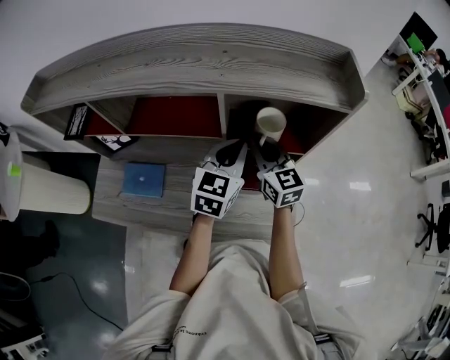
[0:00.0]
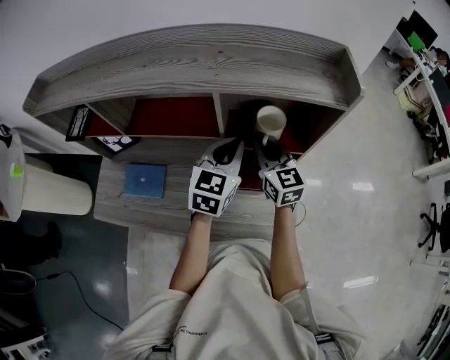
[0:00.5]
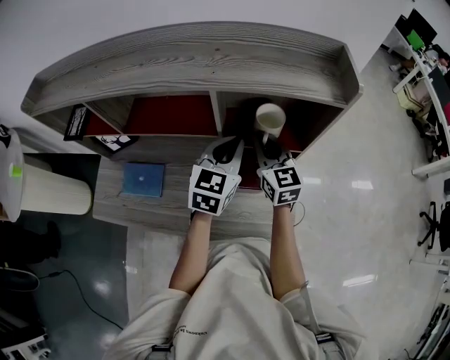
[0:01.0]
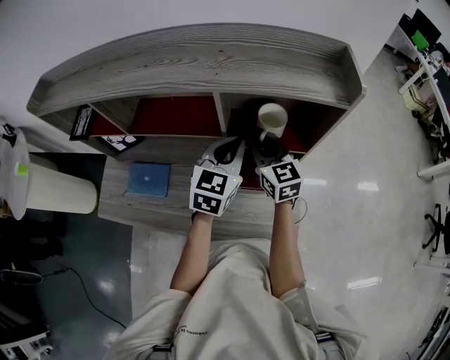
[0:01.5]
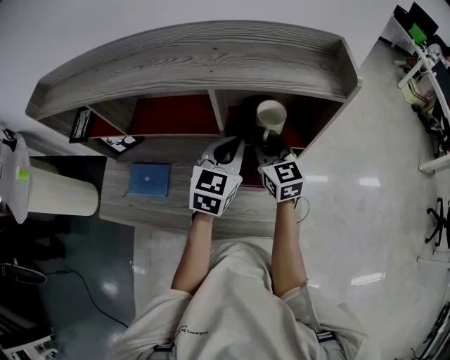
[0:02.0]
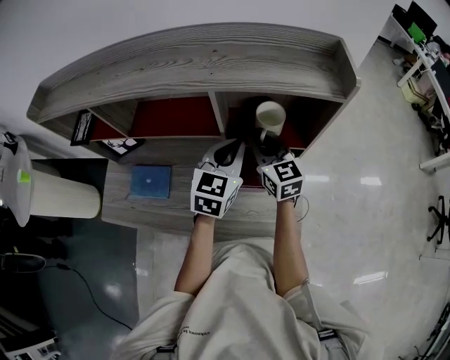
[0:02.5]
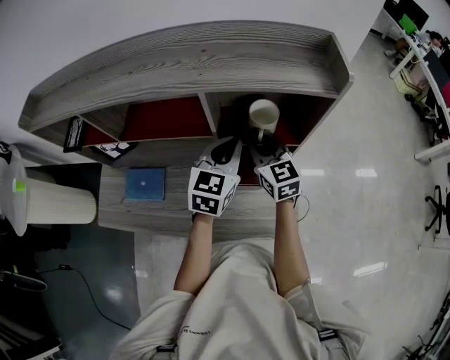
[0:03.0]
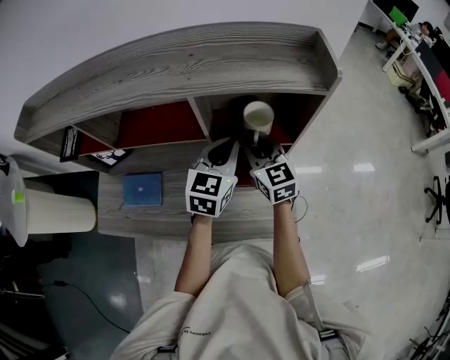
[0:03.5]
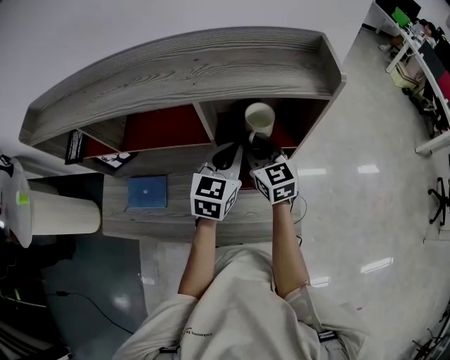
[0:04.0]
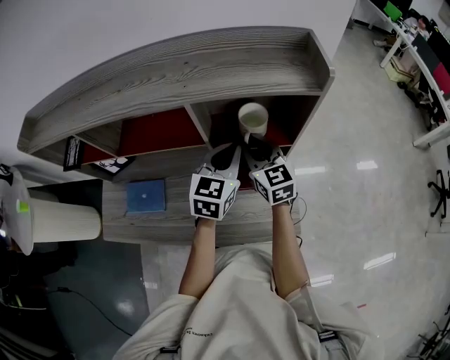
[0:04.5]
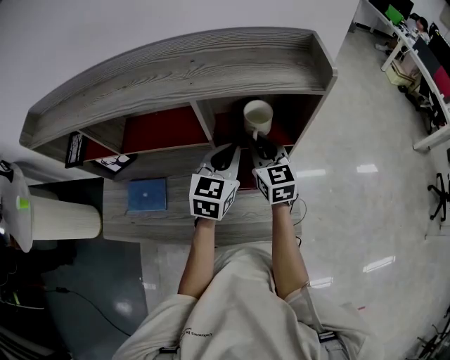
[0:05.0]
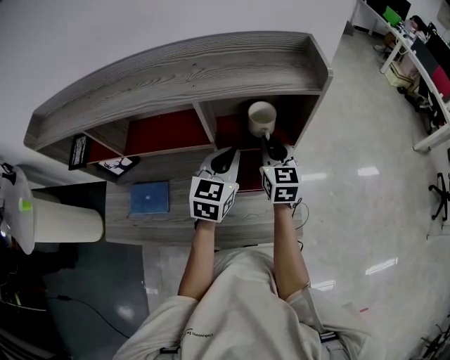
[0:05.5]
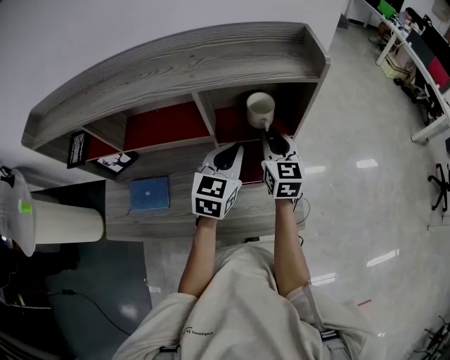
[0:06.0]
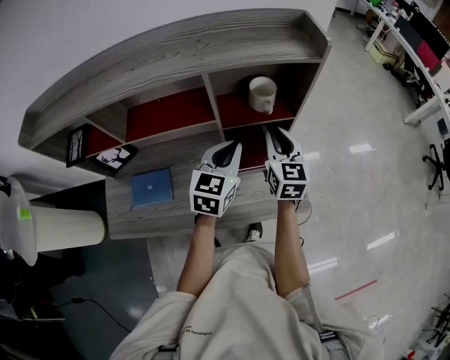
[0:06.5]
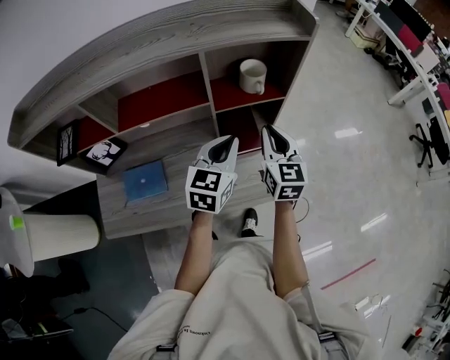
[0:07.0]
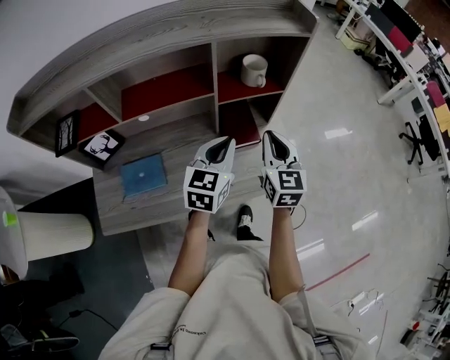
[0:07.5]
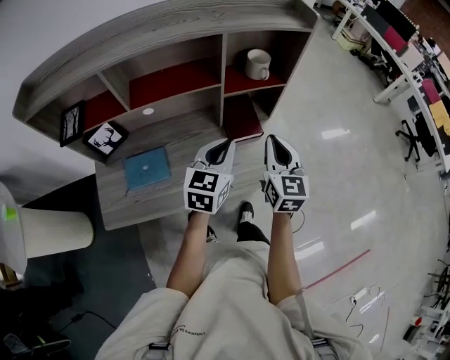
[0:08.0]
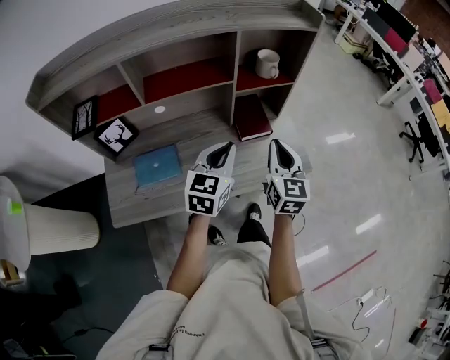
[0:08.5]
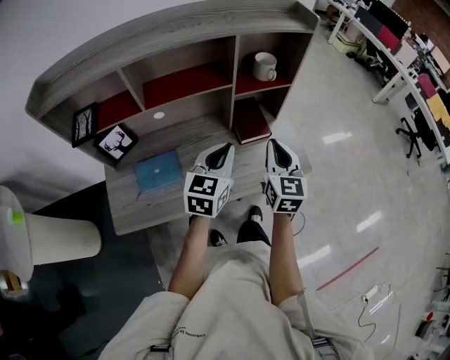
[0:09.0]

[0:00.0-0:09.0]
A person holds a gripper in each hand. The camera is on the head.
0:00.0 to 0:04.5: The grippers make only small movements.
0:04.5 to 0:07.0: The two grippers go approximately 10 cm backward. The right gripper rotates some 30 degrees.
0:07.0 to 0:09.0: The right gripper moves backward, some 15 cm. The left gripper goes approximately 15 cm backward and to the left.

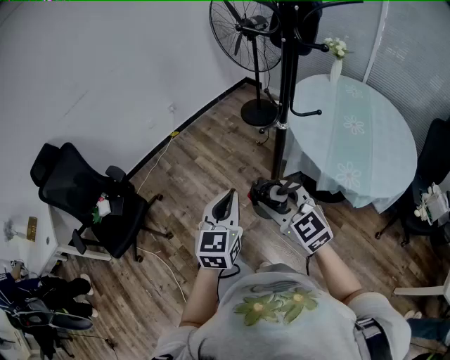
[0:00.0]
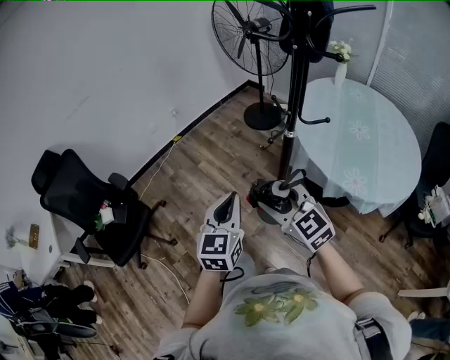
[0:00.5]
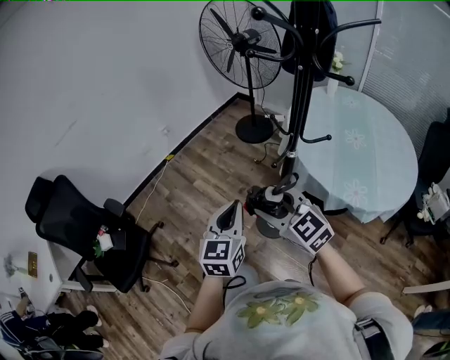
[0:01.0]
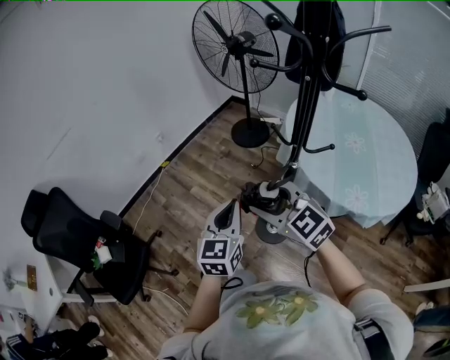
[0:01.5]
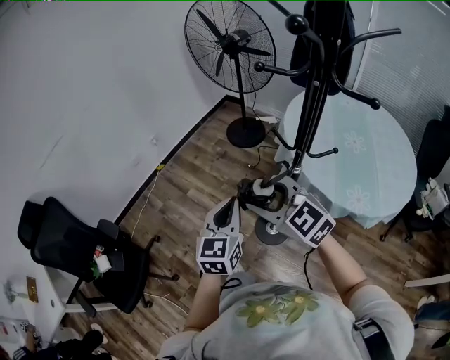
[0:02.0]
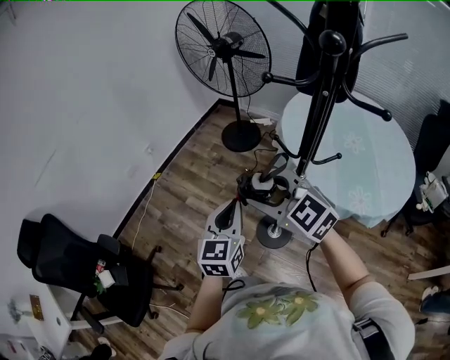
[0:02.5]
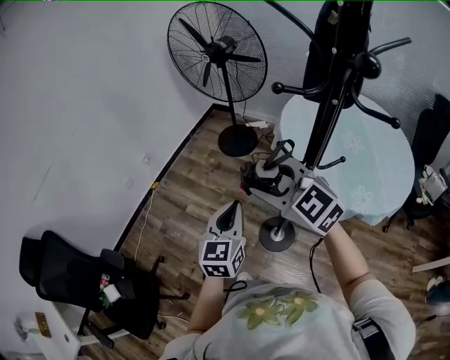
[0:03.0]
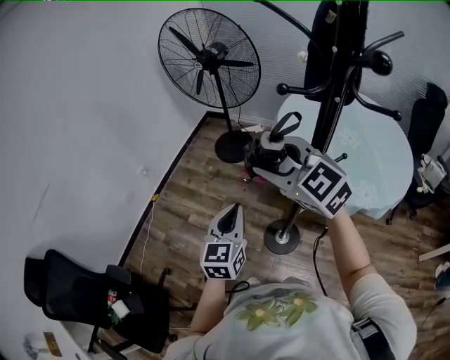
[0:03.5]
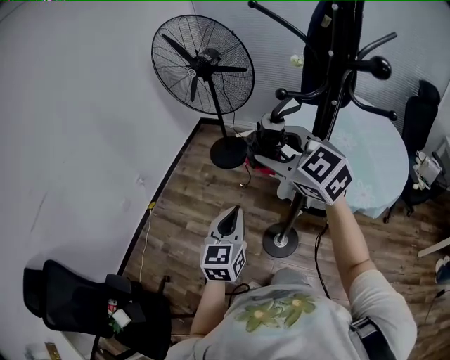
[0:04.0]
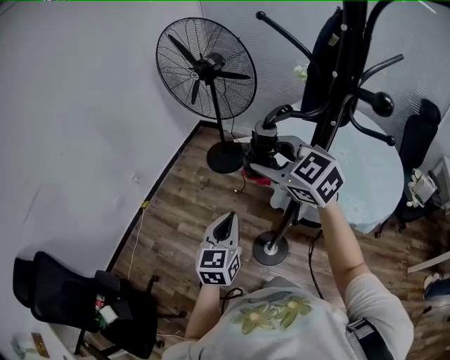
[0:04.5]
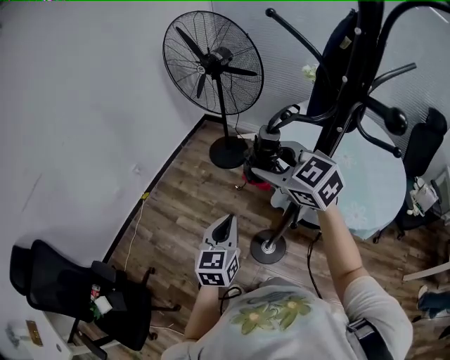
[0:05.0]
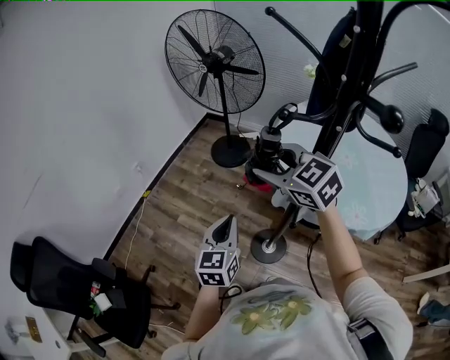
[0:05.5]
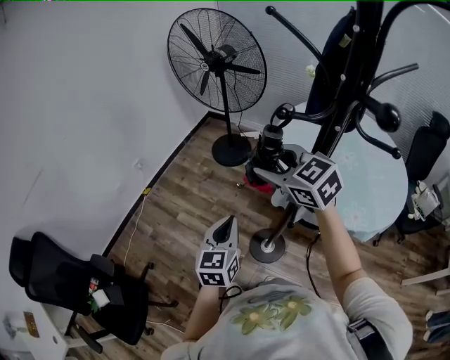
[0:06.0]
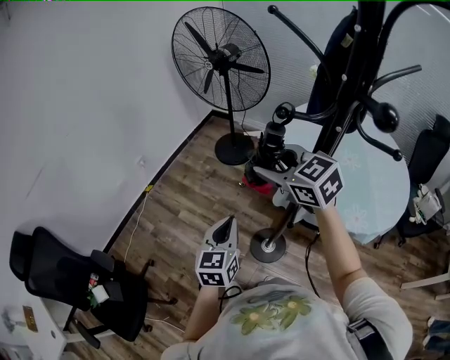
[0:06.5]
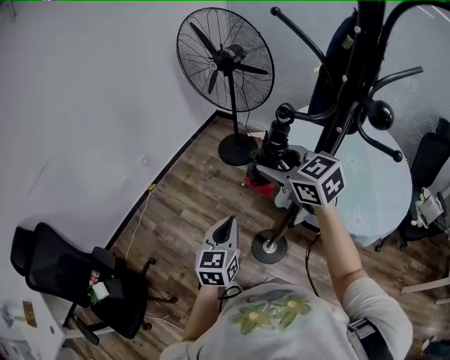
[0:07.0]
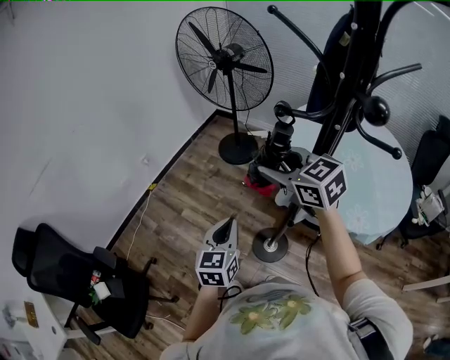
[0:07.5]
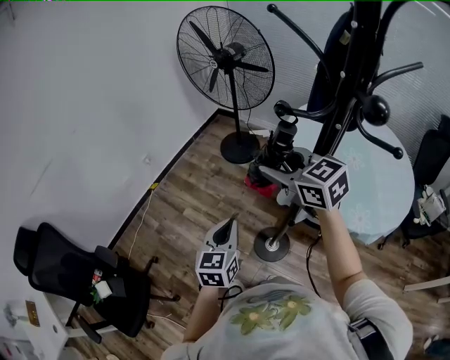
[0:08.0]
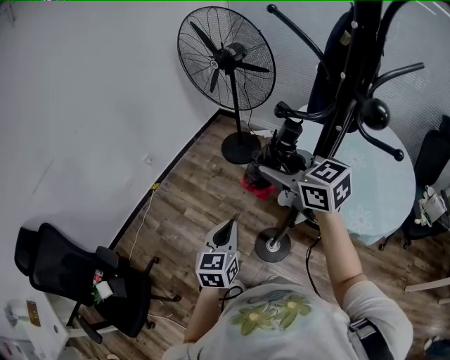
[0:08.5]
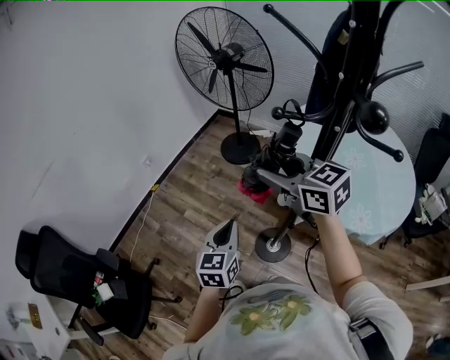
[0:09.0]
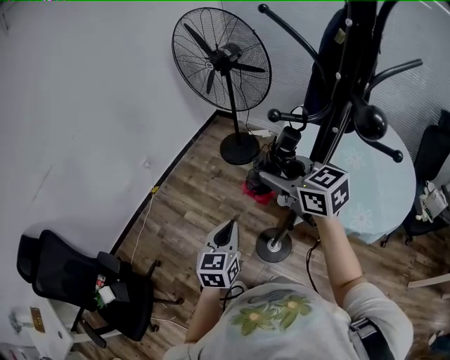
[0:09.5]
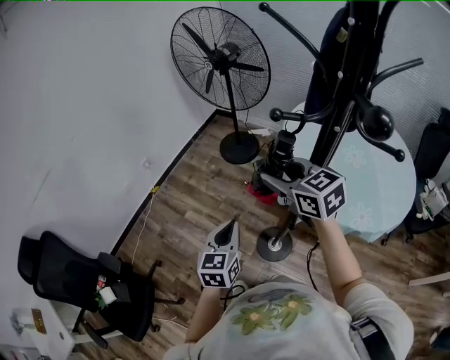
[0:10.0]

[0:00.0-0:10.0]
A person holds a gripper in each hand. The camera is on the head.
0:00.0 to 0:02.0: The two grippers go some 20 cm forward.
0:02.0 to 0:04.0: The left gripper shifts some 10 cm forward; the right gripper shifts some 20 cm forward and upward, and turns by some 20 degrees.
0:04.0 to 0:06.0: The right gripper heads downward, covering about 5 cm.
0:06.0 to 0:10.0: The grippers stay close to where they were, moving slightly.

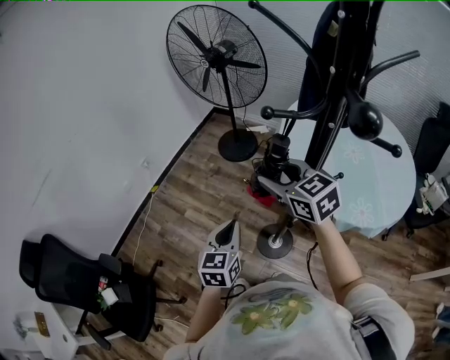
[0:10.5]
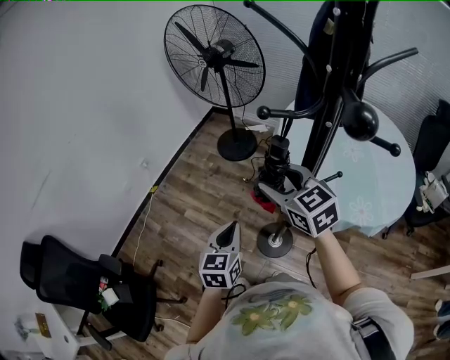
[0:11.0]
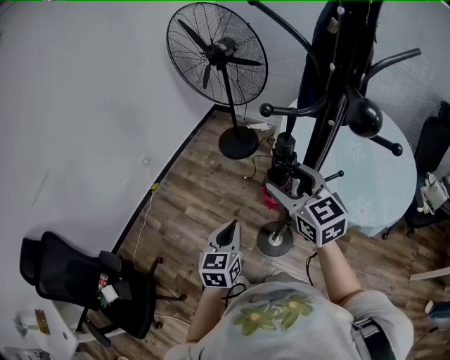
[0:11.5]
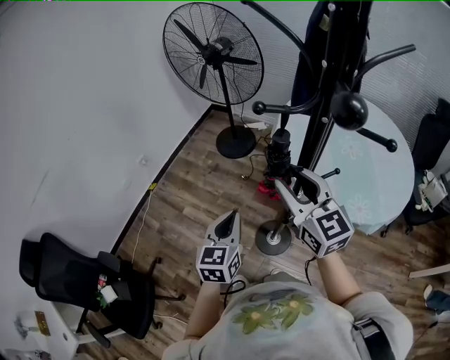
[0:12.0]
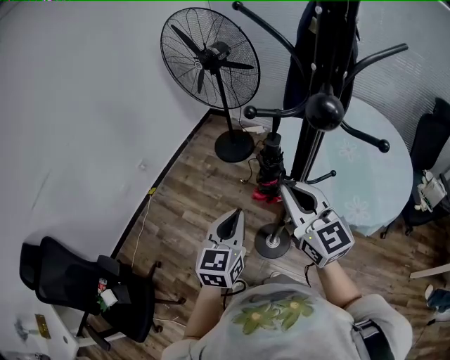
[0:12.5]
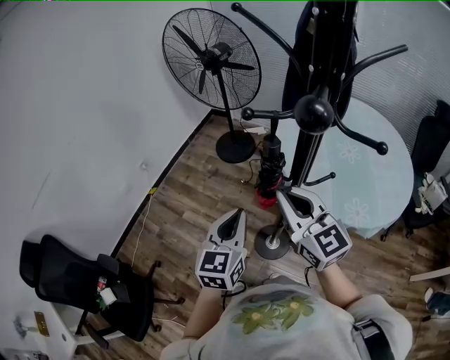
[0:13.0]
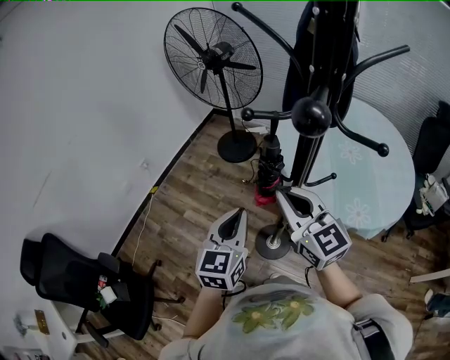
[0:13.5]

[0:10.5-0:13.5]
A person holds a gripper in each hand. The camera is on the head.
0:10.5 to 0:12.0: The right gripper shifts approximately 5 cm backward, and rotates roughly 20 degrees.
0:12.0 to 0:13.5: The left gripper heads upward, covering approximately 5 cm, while the right gripper closes up.

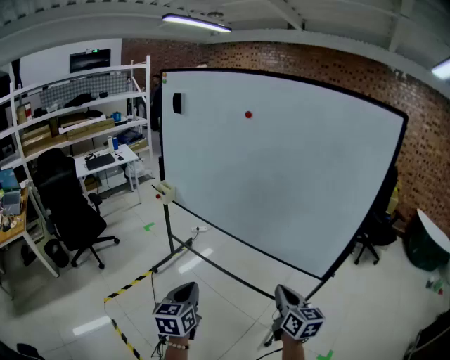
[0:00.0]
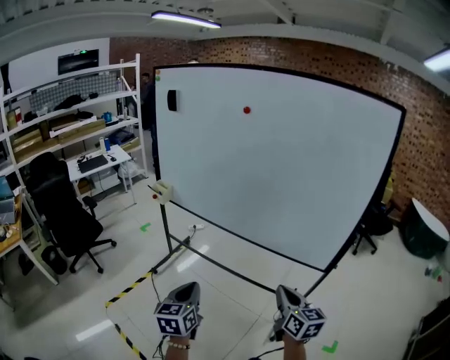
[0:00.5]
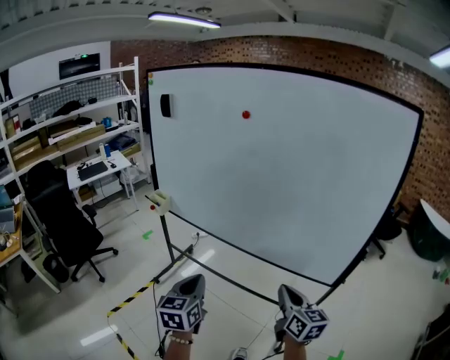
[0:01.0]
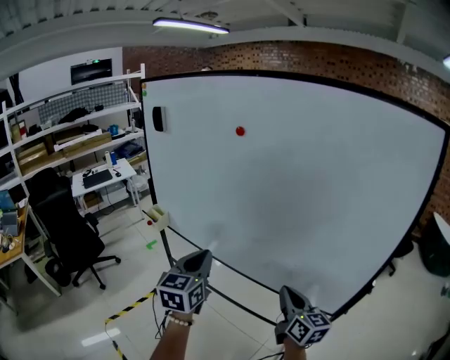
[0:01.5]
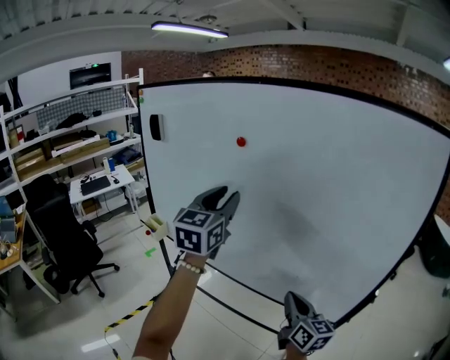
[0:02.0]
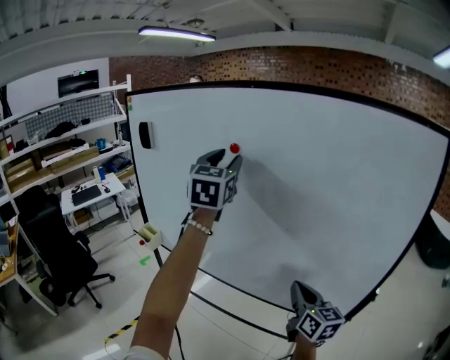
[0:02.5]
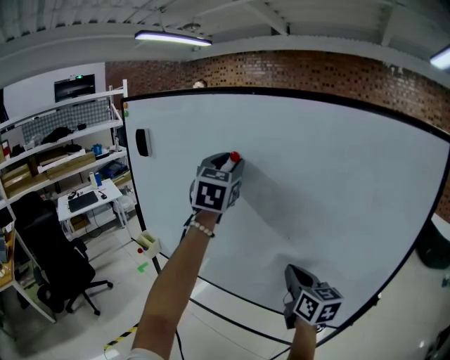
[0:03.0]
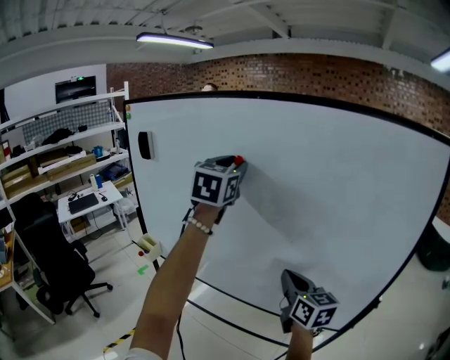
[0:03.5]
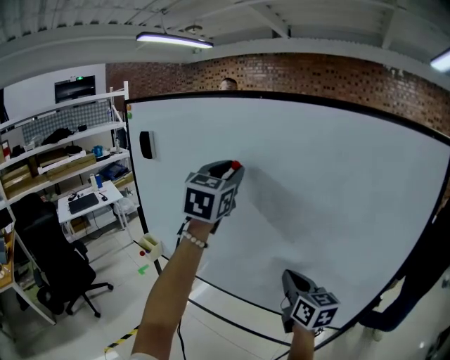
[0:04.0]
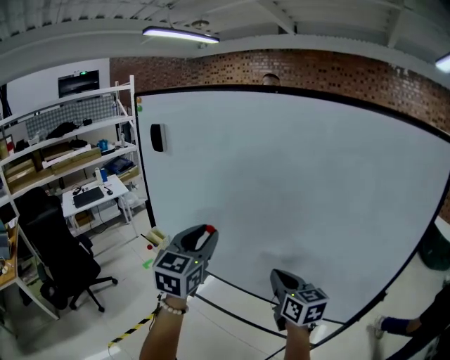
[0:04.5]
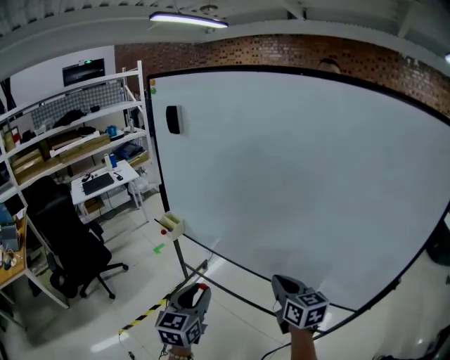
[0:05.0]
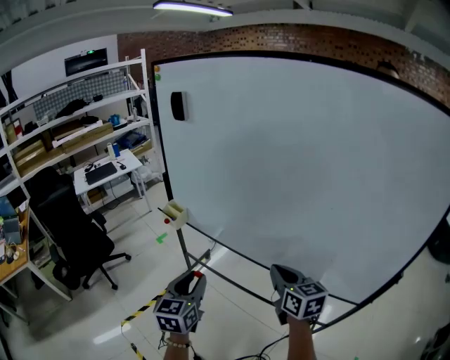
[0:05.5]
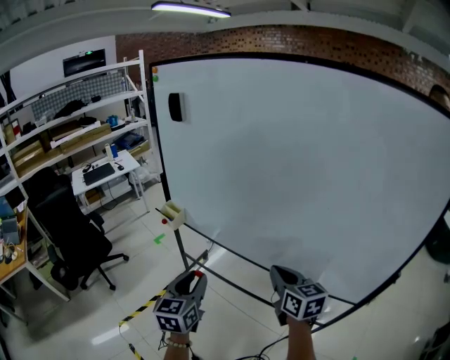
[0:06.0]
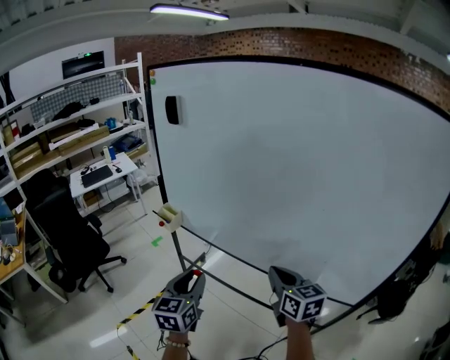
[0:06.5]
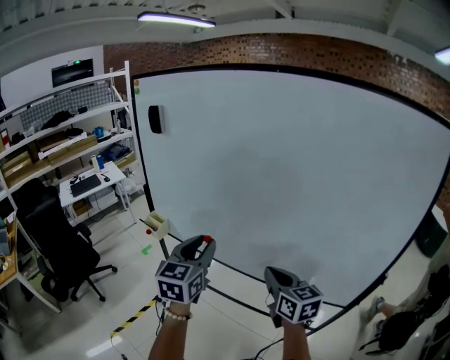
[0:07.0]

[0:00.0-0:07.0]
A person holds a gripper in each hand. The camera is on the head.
0:00.0 to 0:02.0: The left gripper travels forward and upward by roughly 50 cm, rotates roughly 30 degrees, and opens; the right gripper is displaced forward by roughly 25 cm.
0:02.0 to 0:03.5: Both grippers travel together forward and upward, about 15 cm.
0:03.5 to 0:05.0: The right gripper moves to the left, downward and backward, about 15 cm; the left gripper is displaced downward, backward and to the left by approximately 50 cm, and swivels roughly 30 degrees.
0:05.0 to 0:07.0: The left gripper heads upward, forward and to the right, covering roughly 15 cm.
